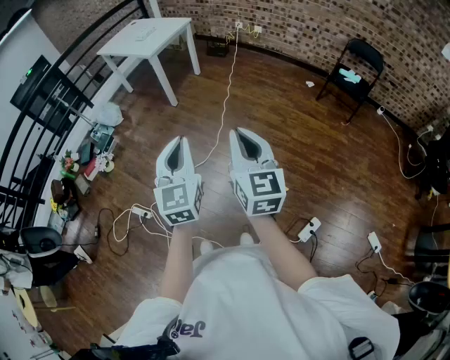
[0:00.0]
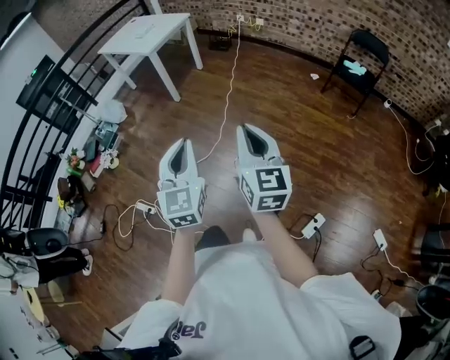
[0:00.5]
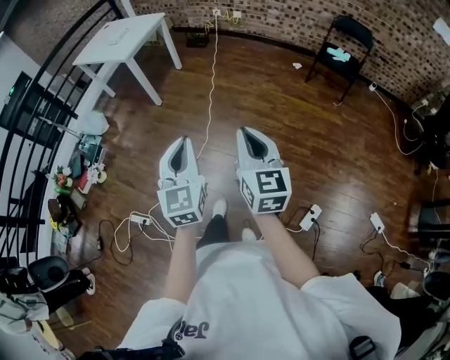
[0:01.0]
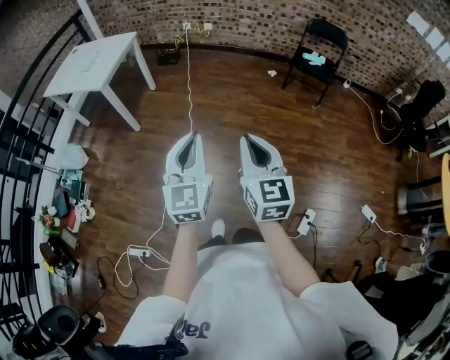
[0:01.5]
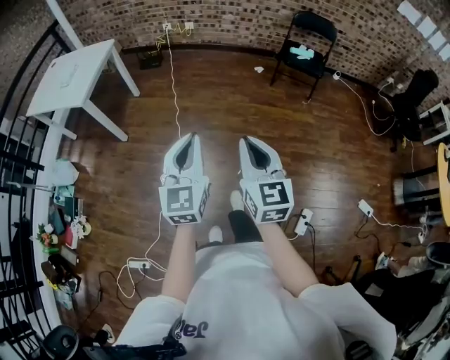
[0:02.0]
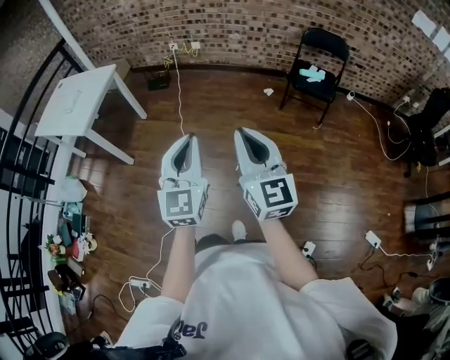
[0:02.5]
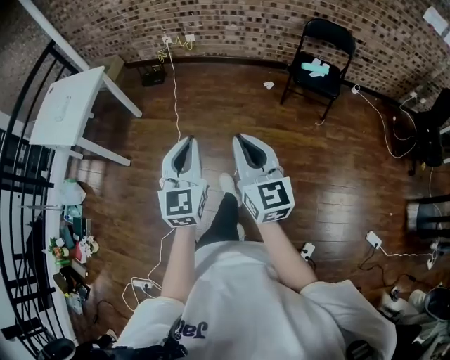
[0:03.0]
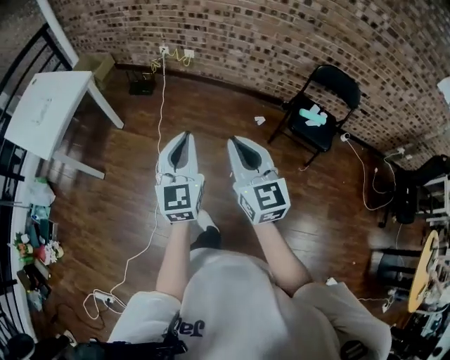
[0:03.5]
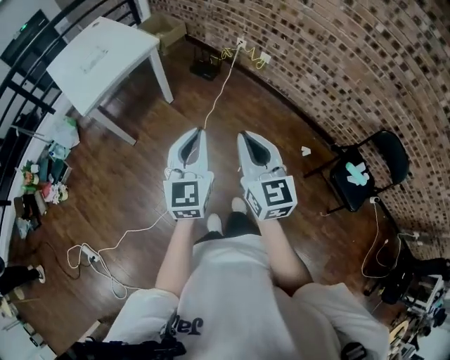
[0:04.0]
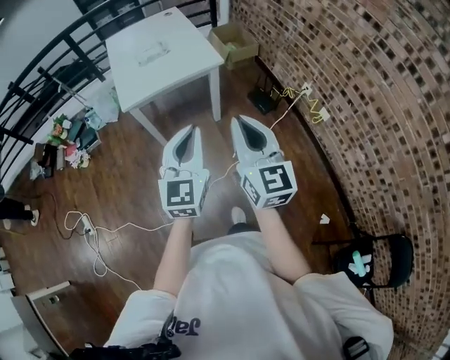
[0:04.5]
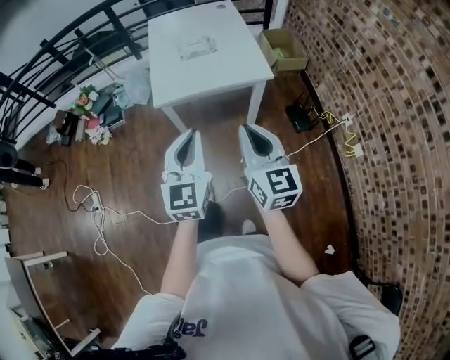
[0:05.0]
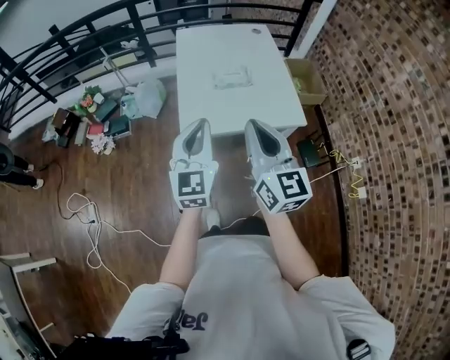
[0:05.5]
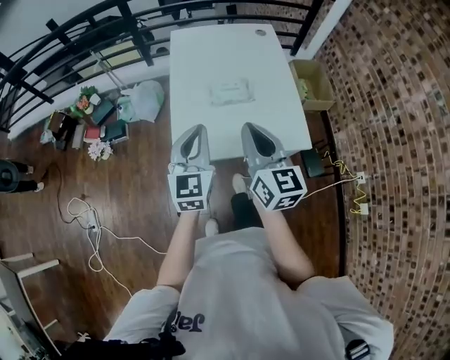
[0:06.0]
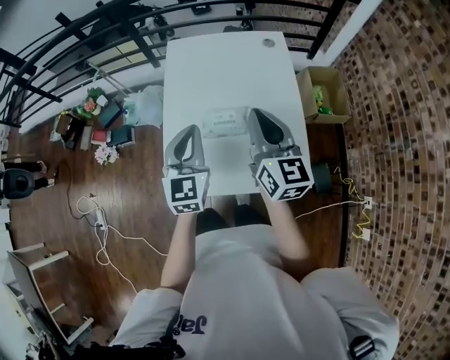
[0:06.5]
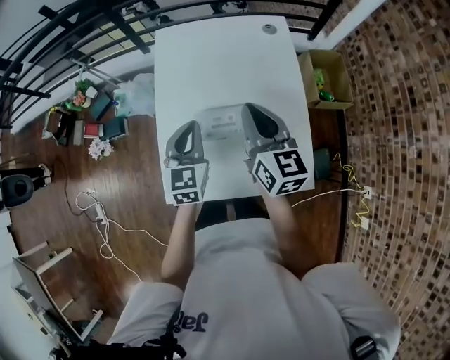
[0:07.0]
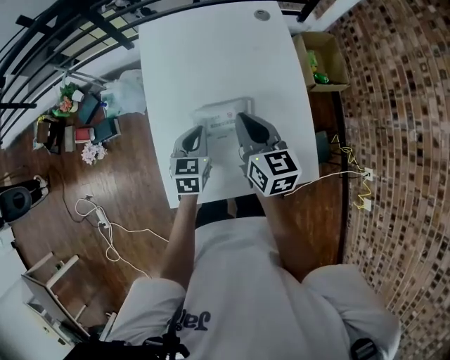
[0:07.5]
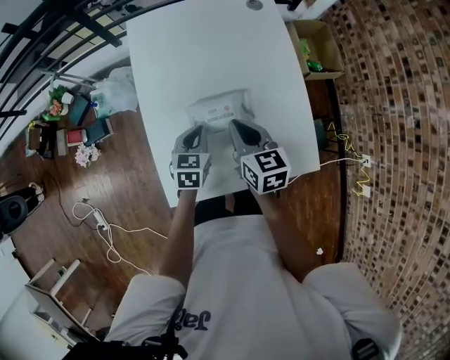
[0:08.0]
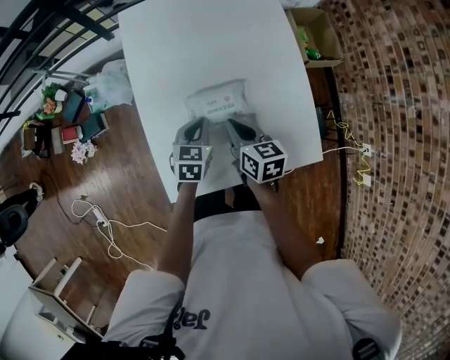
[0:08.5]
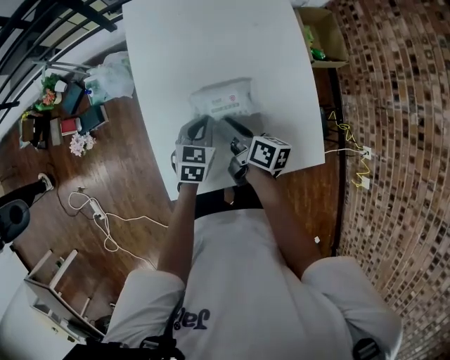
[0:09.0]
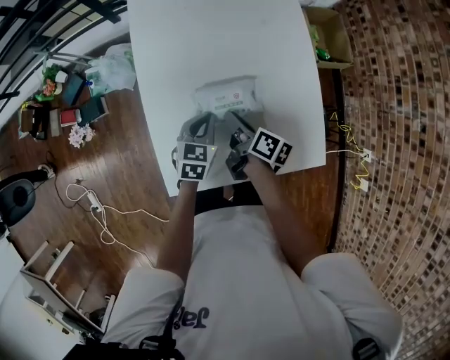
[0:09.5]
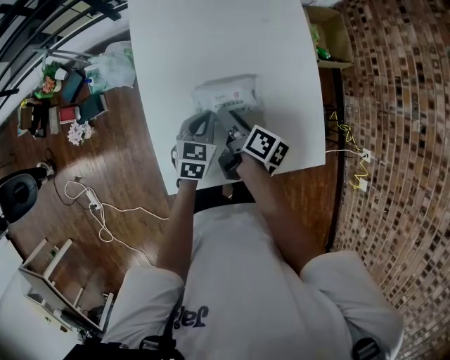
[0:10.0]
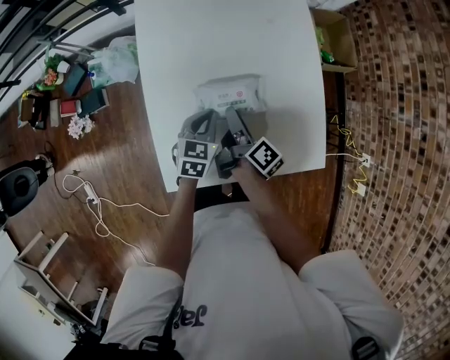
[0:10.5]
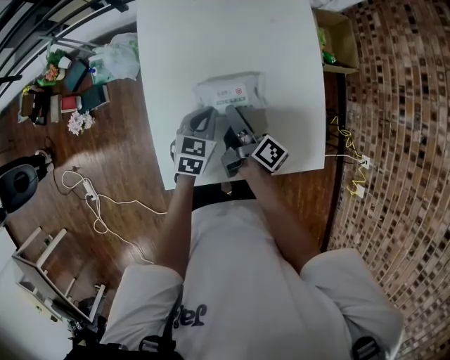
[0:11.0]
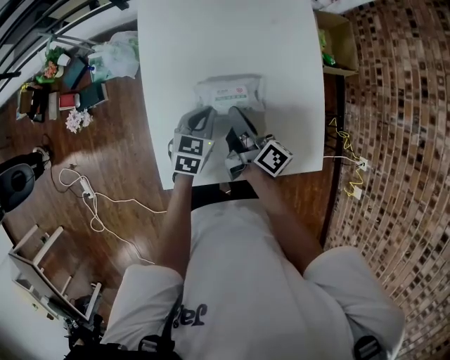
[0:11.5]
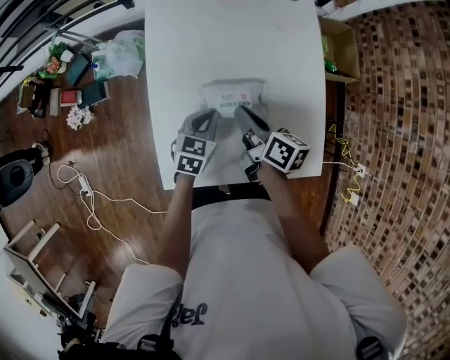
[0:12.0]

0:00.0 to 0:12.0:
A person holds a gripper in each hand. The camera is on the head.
0:00.0 to 0:02.0: The left gripper shifts by some 30 cm, and swivels about 30 degrees. The right gripper moves approximately 25 cm, and rotates some 20 degrees.
0:02.0 to 0:04.0: Both grippers are carried some 60 cm. The right gripper turns by some 40 degrees; the left gripper rotates about 30 degrees.
0:04.0 to 0:06.0: The pair of grippers is taken approximately 70 cm. The right gripper swivels about 40 degrees, while the left gripper changes its angle by some 40 degrees.
0:06.0 to 0:08.0: The right gripper travels forward and downward by about 30 cm, and turns by some 30 degrees; the left gripper shifts roughly 35 cm downward and forward, and points its fingers about 40 degrees further downward.
0:08.0 to 0:10.0: The right gripper is displaced downward by approximately 10 cm, rolls clockwise, seen from behind, by some 50 degrees, and opens its fingers.
0:10.0 to 0:12.0: The right gripper heads upward, covering about 5 cm, turns by some 20 degrees, and closes.

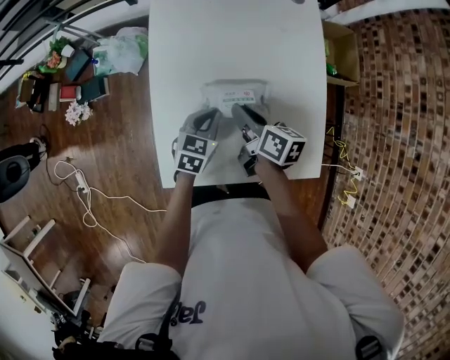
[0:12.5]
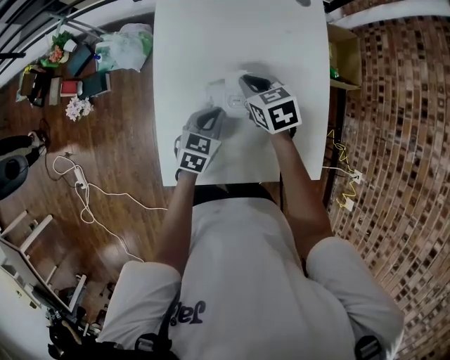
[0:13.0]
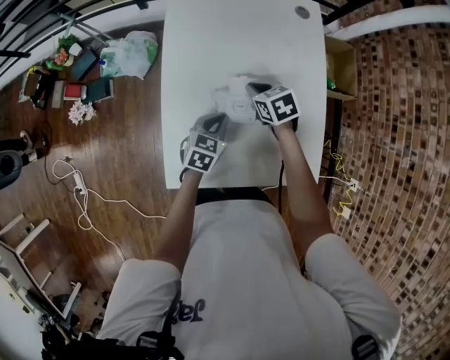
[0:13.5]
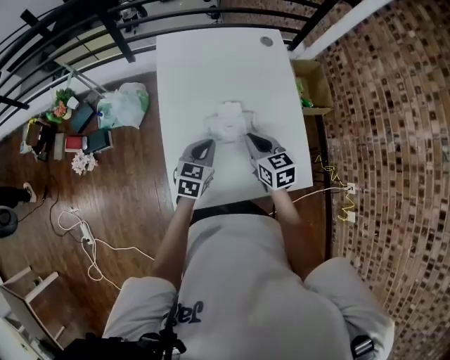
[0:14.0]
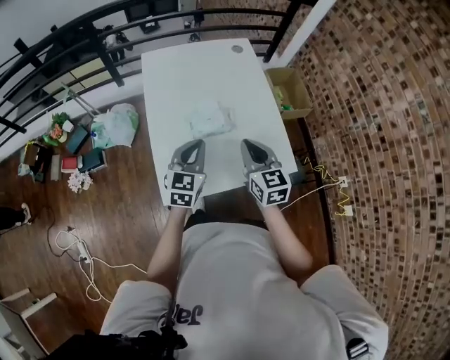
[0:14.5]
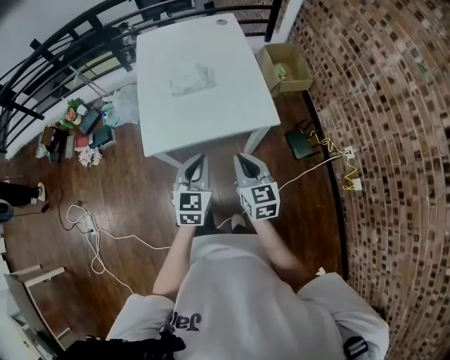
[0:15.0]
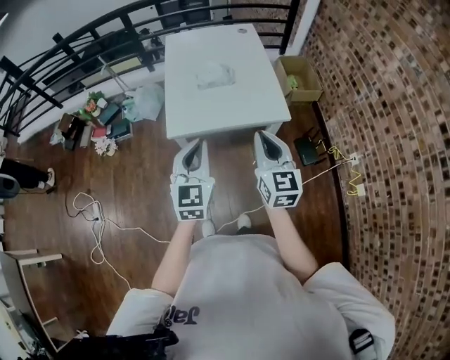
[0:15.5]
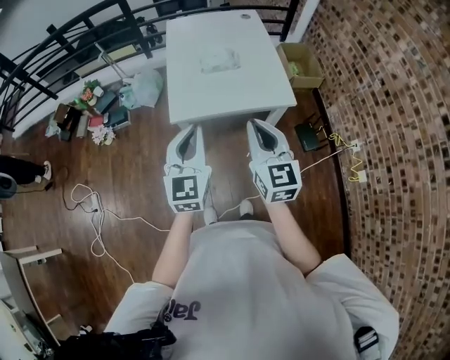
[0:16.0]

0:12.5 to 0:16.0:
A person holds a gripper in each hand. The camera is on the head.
0:12.5 to 0:14.5: The left gripper moves upward and backward, some 20 cm, and swivels about 30 degrees. The right gripper shifts approximately 20 cm backward and upward, and rolls counterclockwise, seen from behind, by roughly 40 degrees.
0:14.5 to 0:16.0: The left gripper moves backward and upward, some 35 cm, and swivels approximately 20 degrees, while the right gripper travels backward by roughly 30 cm.

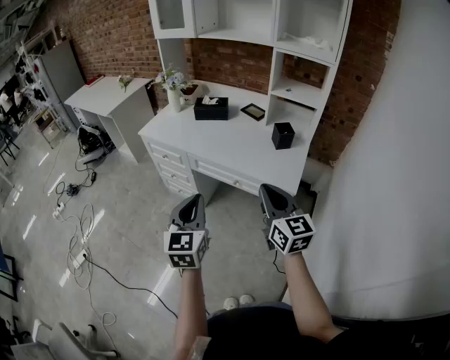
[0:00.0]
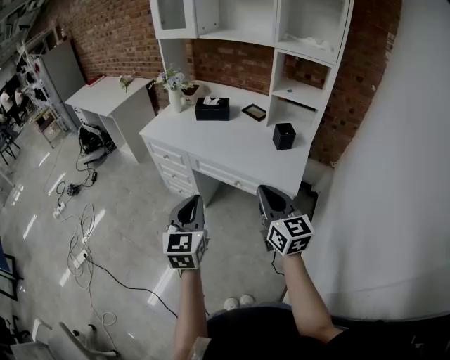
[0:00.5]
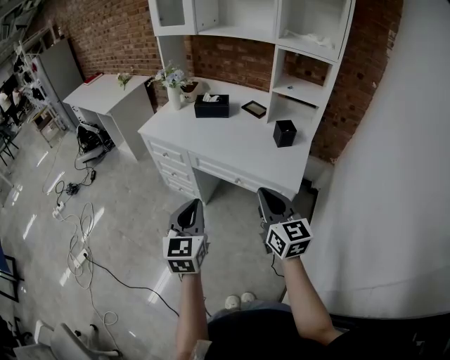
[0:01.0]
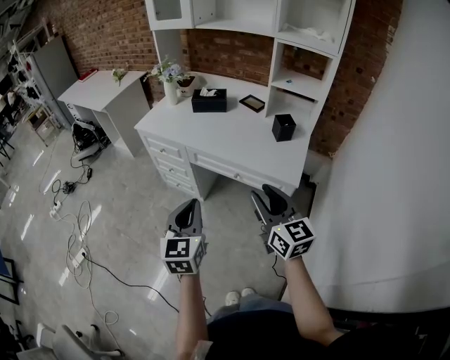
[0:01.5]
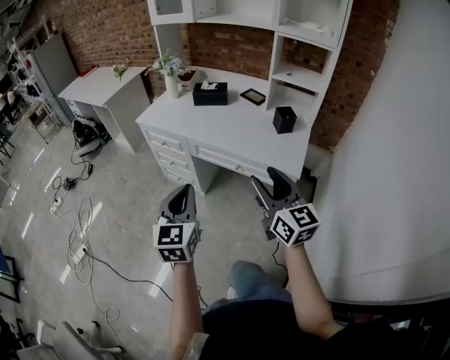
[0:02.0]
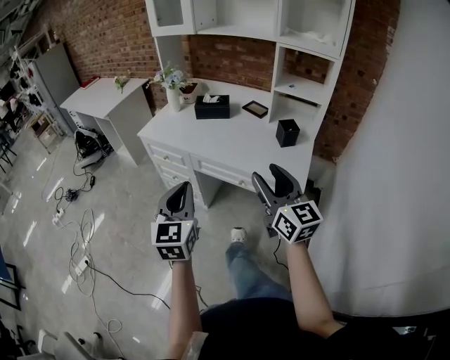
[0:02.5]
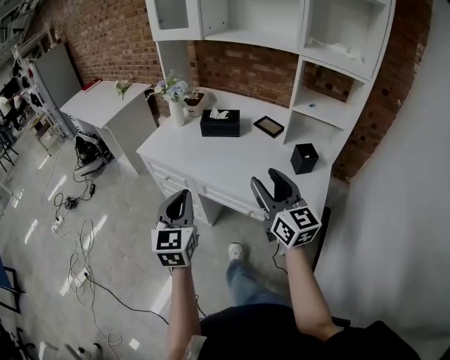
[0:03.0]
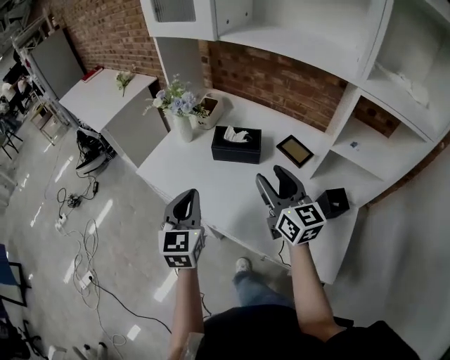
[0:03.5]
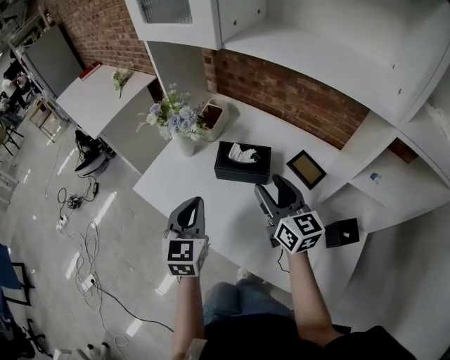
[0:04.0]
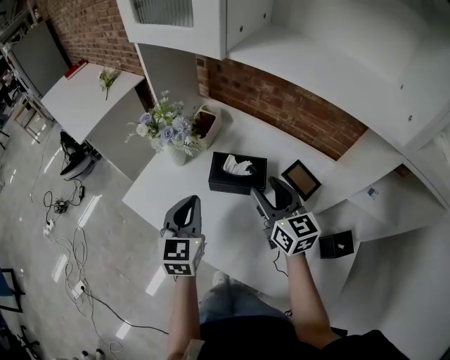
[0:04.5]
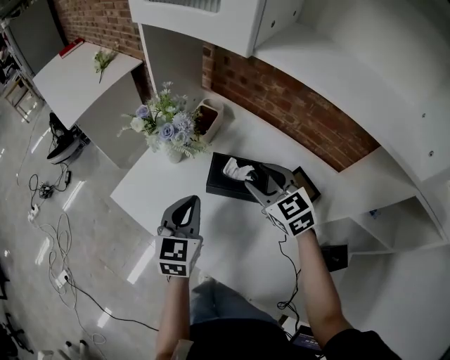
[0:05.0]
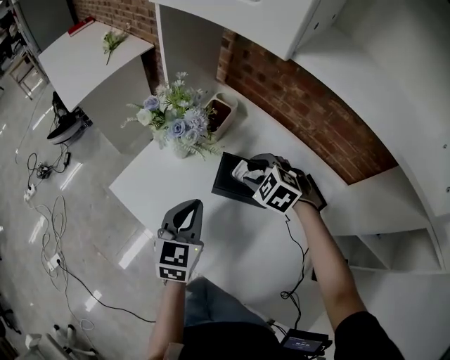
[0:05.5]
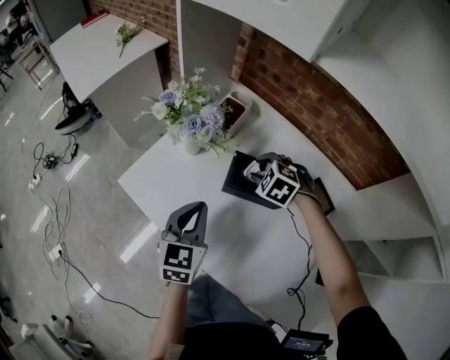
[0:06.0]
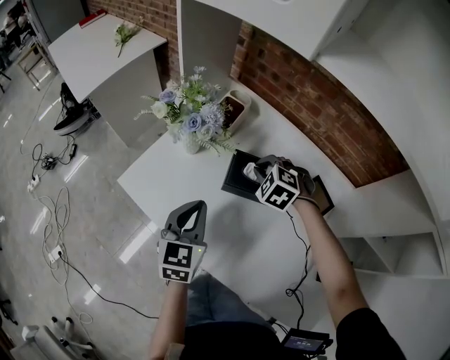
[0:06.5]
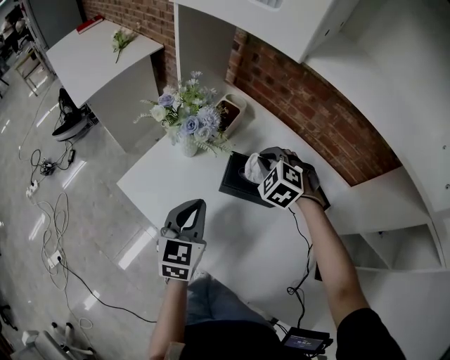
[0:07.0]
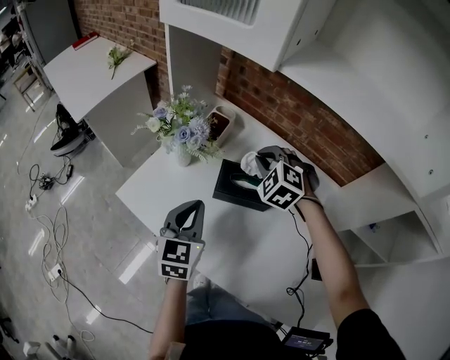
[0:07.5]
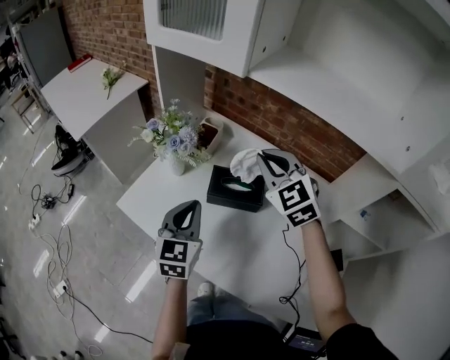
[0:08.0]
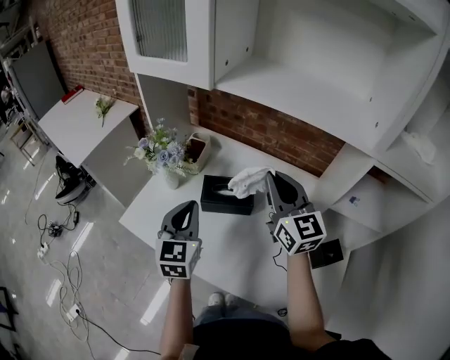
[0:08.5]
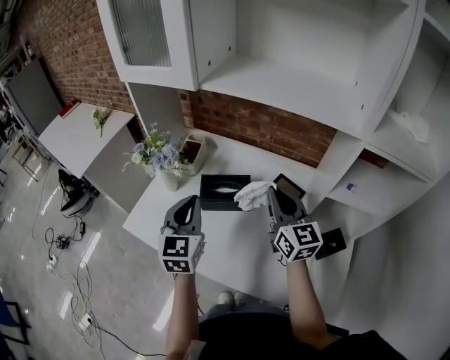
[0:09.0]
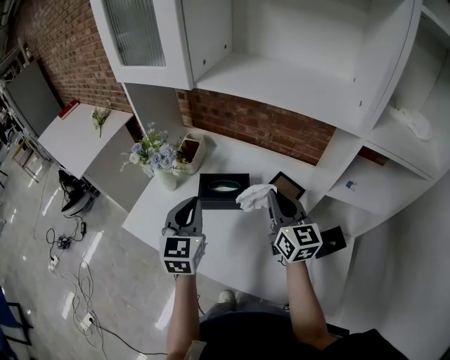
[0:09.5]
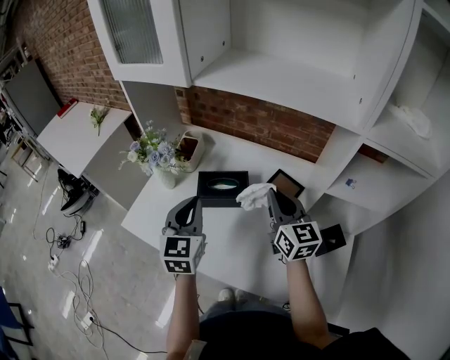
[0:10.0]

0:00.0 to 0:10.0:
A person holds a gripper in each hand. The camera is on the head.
0:00.0 to 0:02.0: The right gripper opens up. Meanwhile the left gripper moves approximately 5 cm.
0:02.0 to 0:04.0: Both grippers are carried forward, some 50 cm.
0:04.0 to 0:06.0: The left gripper goes roughly 10 cm forward and downward. Meanwhile the right gripper travels forward and downward by roughly 25 cm, and tips its fingers downward by some 60 degrees.
0:06.0 to 0:08.0: The right gripper goes approximately 25 cm upward, angles its fingers upward, by approximately 40 degrees, and closes. The left gripper is displaced upward by about 5 cm.
0:08.0 to 0:10.0: The right gripper goes about 20 cm to the right, backward and downward, and twists approximately 40 degrees clockwise, seen from behind. Meanwhile the left gripper is displaced to the right by about 5 cm.

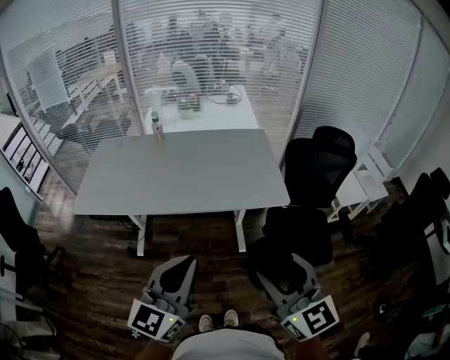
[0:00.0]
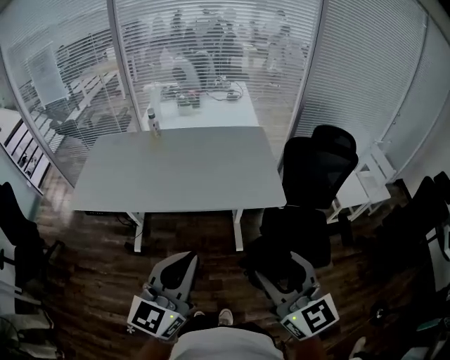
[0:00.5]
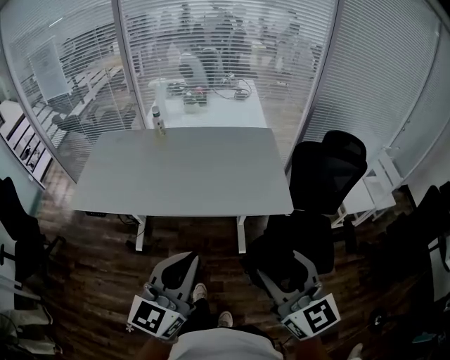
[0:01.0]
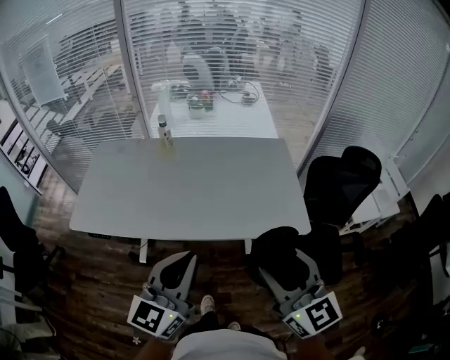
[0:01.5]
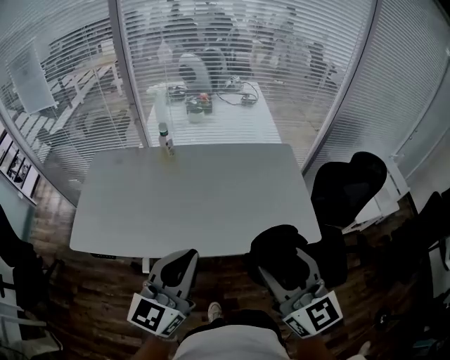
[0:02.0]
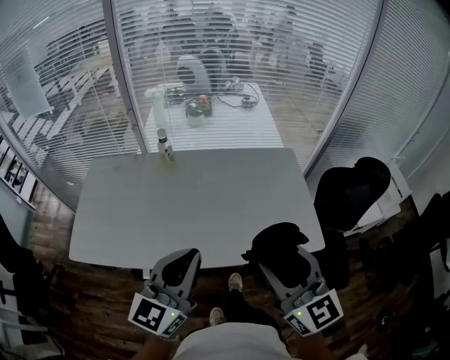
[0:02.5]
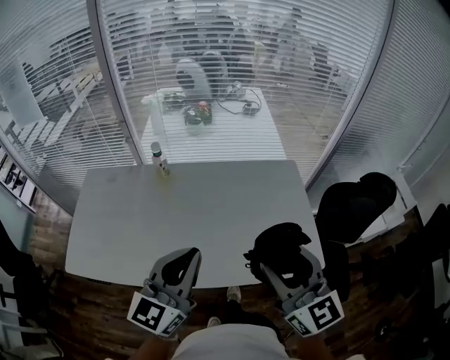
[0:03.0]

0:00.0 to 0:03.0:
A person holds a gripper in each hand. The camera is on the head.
0:00.0 to 0:01.5: Both grippers move forward, approximately 20 cm.
0:01.5 to 0:03.0: Both grippers move forward, approximately 20 cm.
